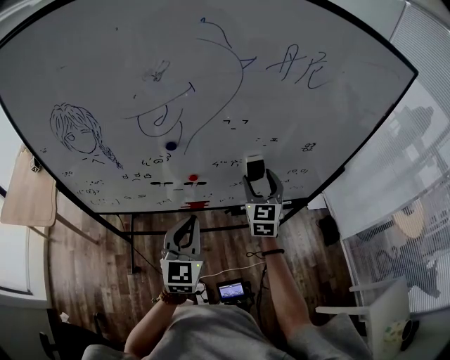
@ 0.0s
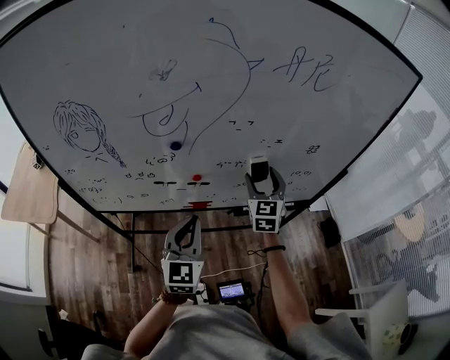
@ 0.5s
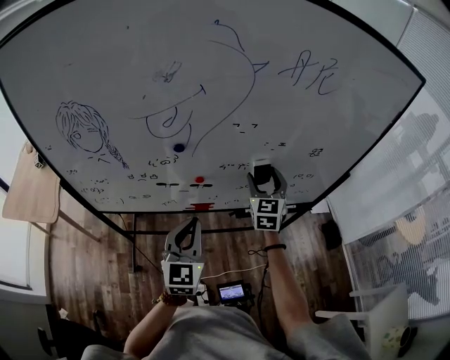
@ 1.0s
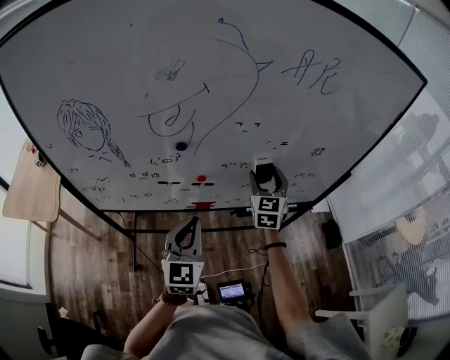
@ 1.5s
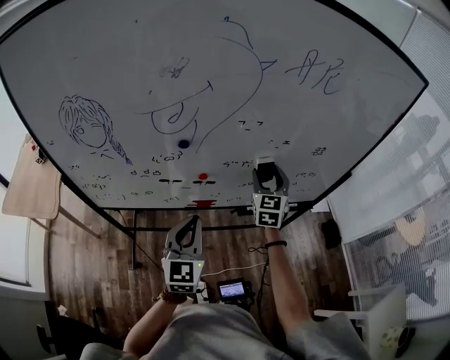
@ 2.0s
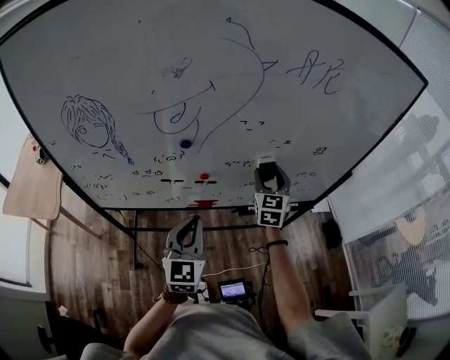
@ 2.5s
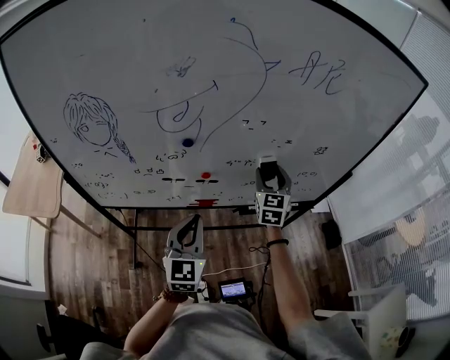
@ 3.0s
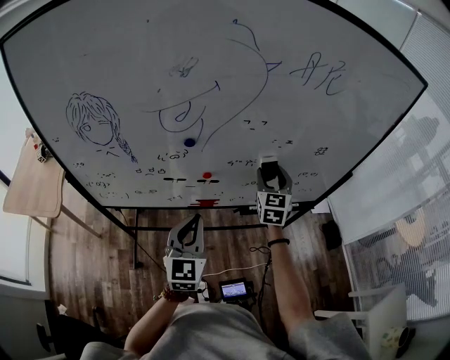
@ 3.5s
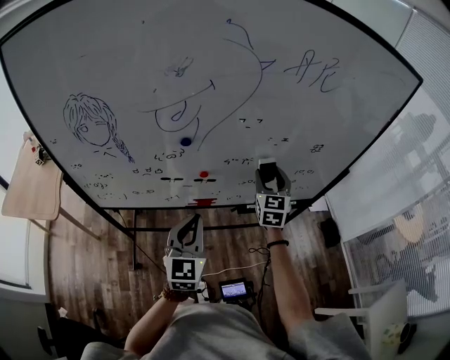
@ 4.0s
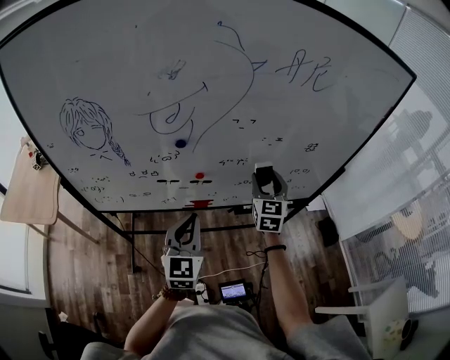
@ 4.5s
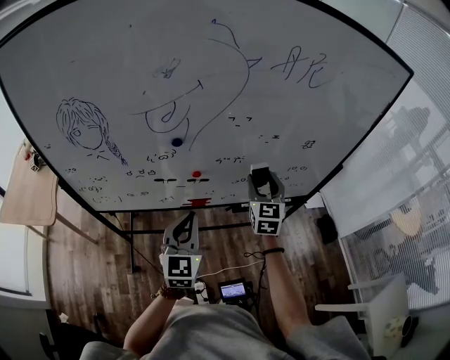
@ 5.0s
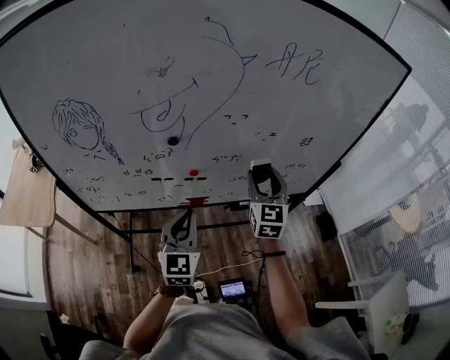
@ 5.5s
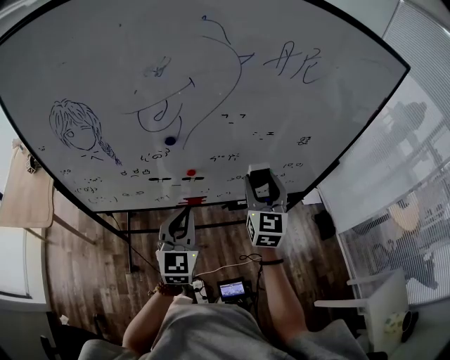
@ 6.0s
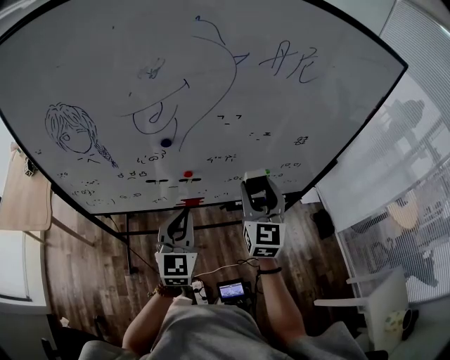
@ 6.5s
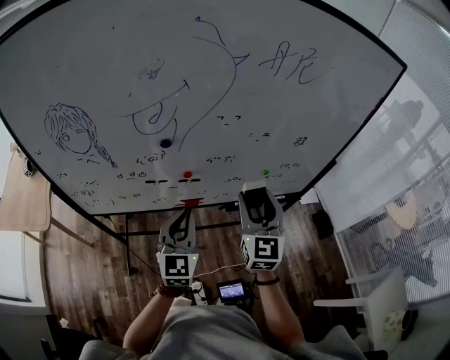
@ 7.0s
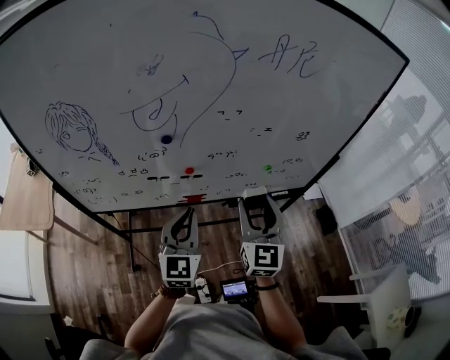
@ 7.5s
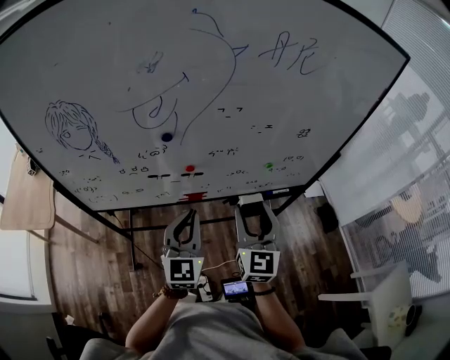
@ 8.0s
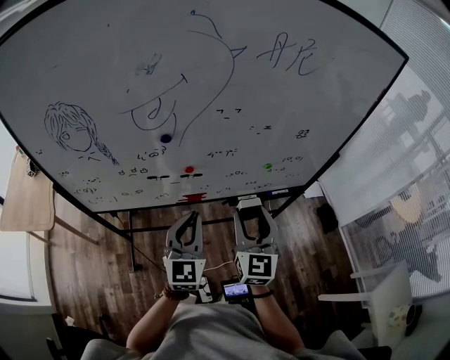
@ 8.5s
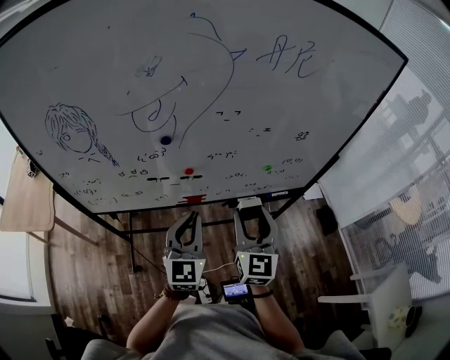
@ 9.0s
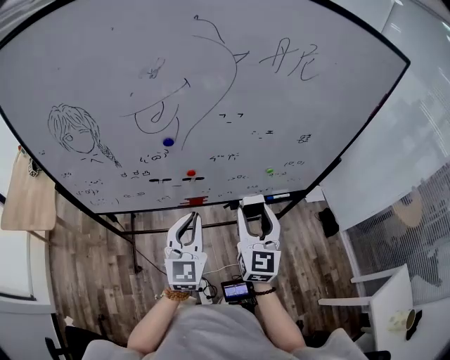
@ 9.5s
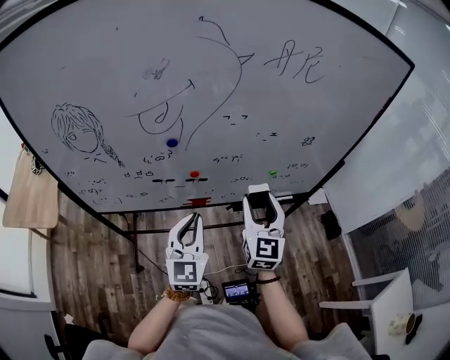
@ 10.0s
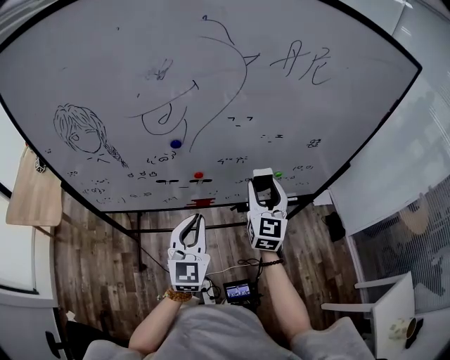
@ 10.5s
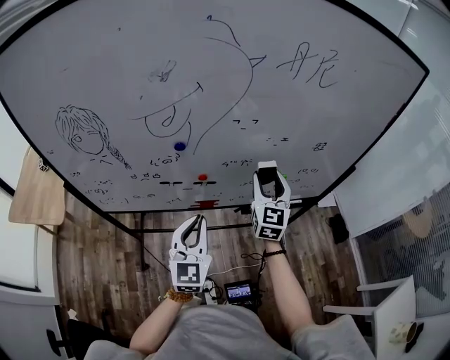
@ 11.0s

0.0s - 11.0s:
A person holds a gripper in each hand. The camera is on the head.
0.0s - 2.0s: There are only small adjustments of the grippers.
2.0s - 3.5s: Both grippers stay put.
3.5s - 5.5s: The right gripper heads backward and upward, covering approximately 10 cm.
5.5s - 7.5s: The right gripper is displaced backward by some 10 cm.
7.5s - 9.0s: The grippers move only a little.
9.0s - 11.0s: The right gripper heads forward, covering some 15 cm.

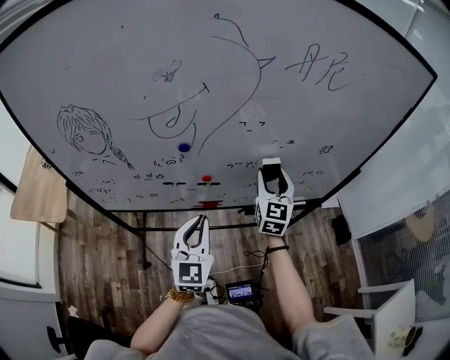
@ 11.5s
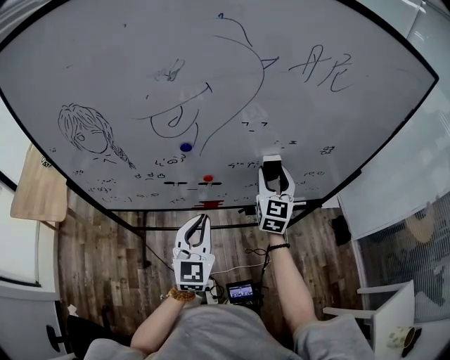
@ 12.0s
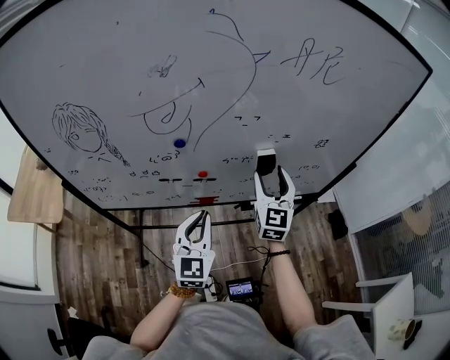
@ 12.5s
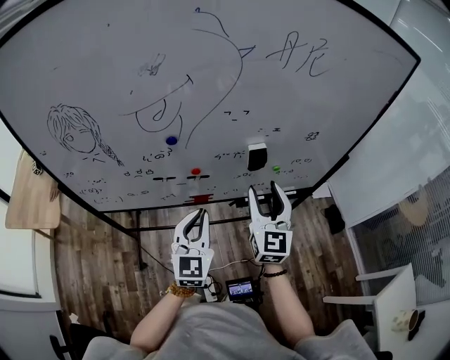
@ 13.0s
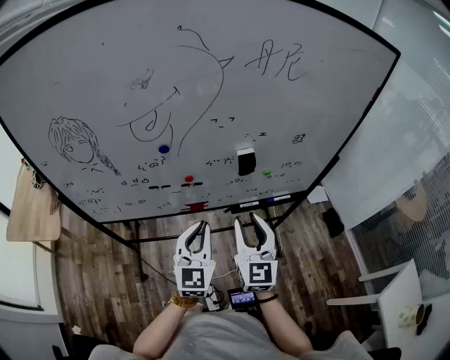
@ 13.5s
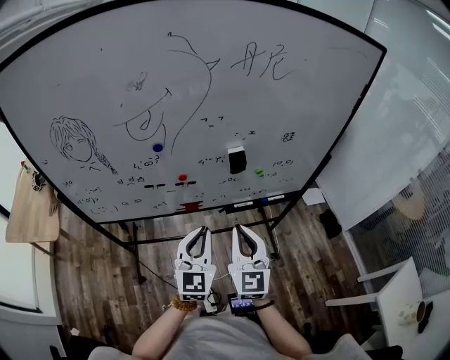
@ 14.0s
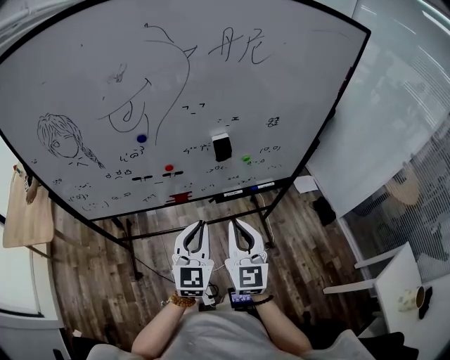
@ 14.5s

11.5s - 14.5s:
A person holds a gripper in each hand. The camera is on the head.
11.5s - 13.0s: The right gripper goes roughly 10 cm backward.
13.0s - 14.5s: The left gripper goes roughly 10 cm to the right and backward. Meanwhile the right gripper shifts roughly 15 cm backward, and closes up.

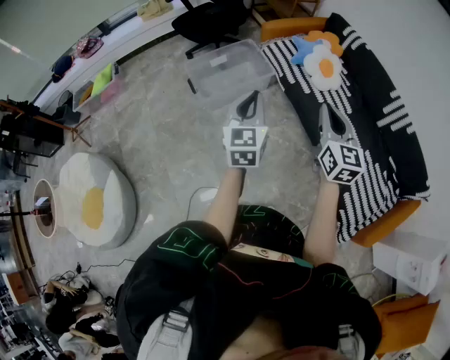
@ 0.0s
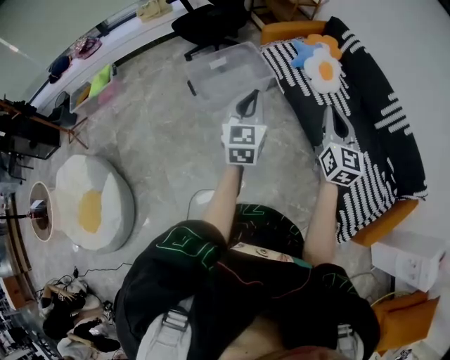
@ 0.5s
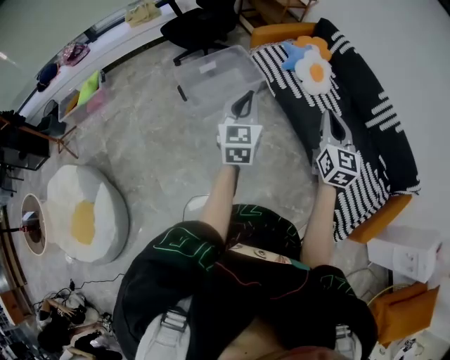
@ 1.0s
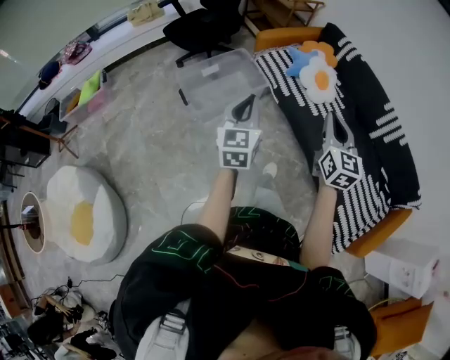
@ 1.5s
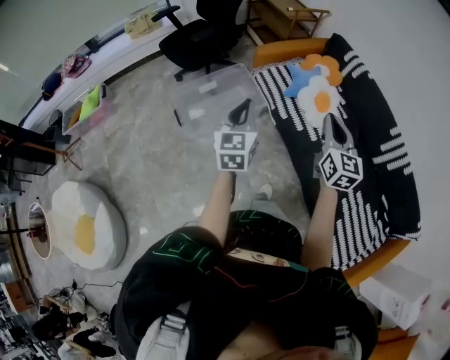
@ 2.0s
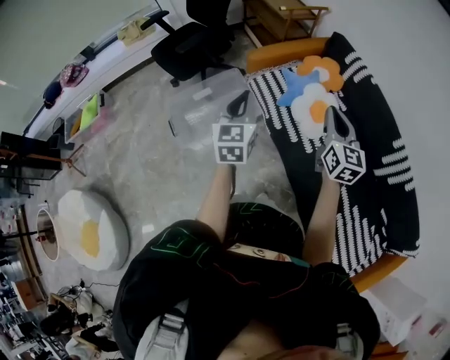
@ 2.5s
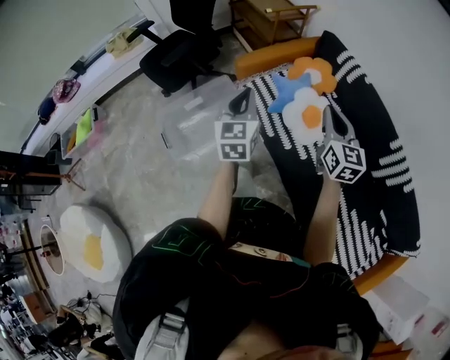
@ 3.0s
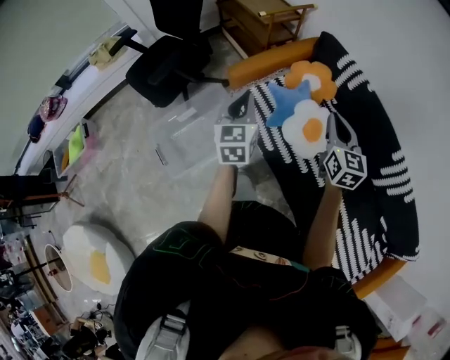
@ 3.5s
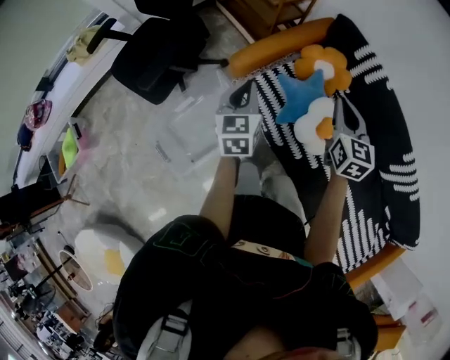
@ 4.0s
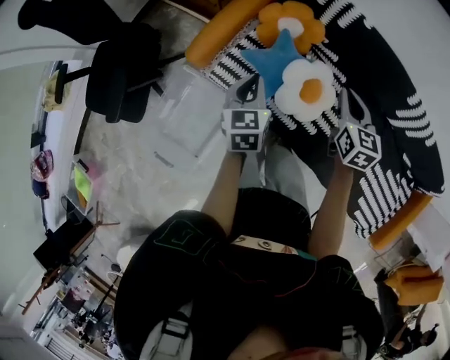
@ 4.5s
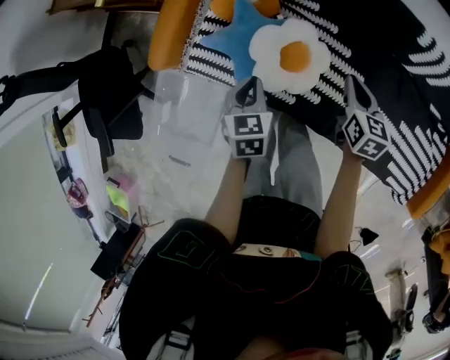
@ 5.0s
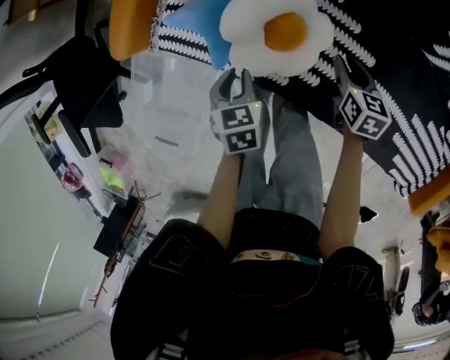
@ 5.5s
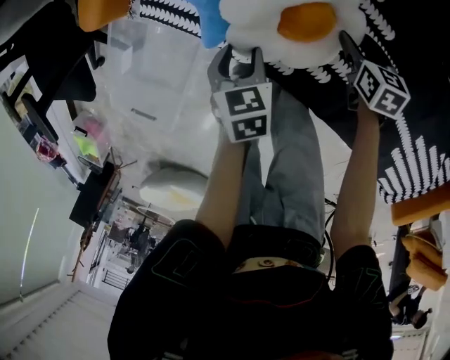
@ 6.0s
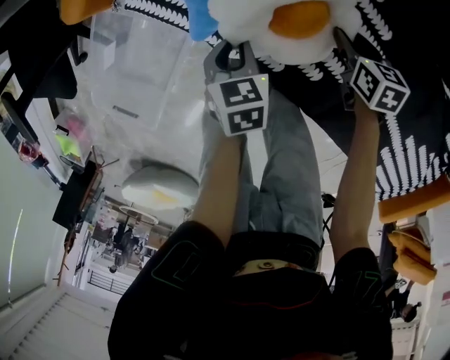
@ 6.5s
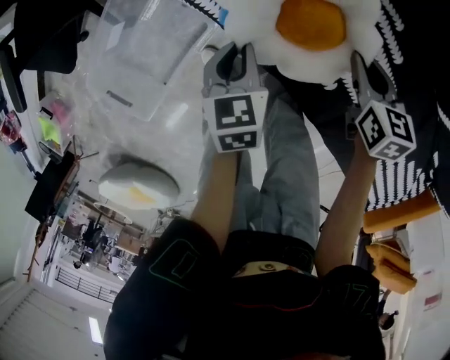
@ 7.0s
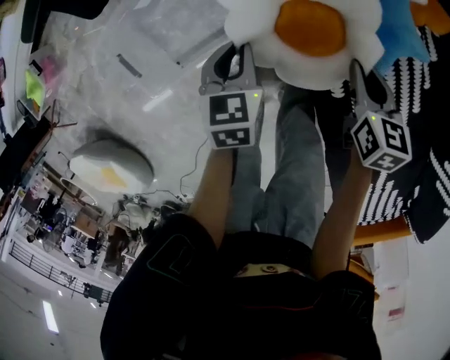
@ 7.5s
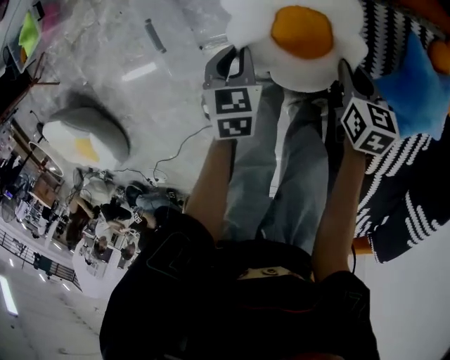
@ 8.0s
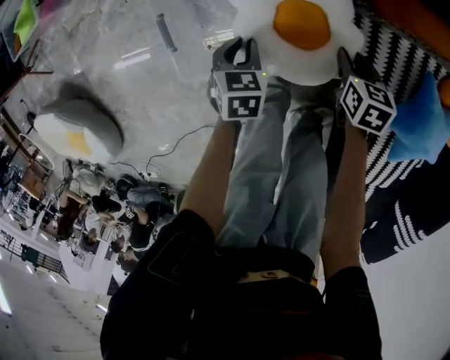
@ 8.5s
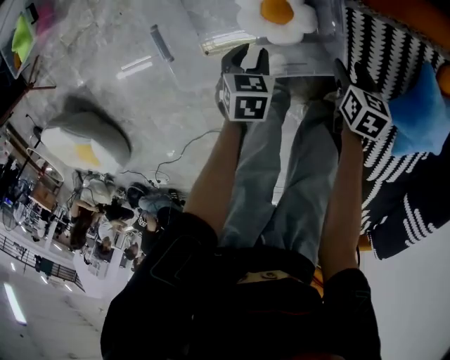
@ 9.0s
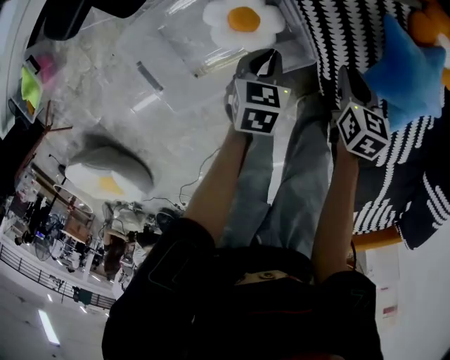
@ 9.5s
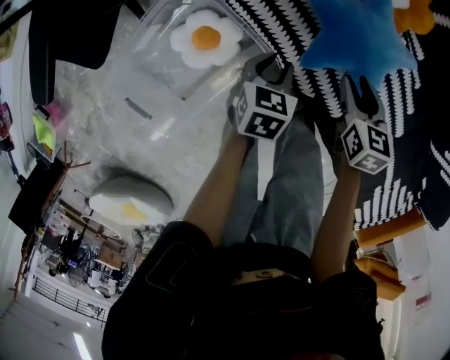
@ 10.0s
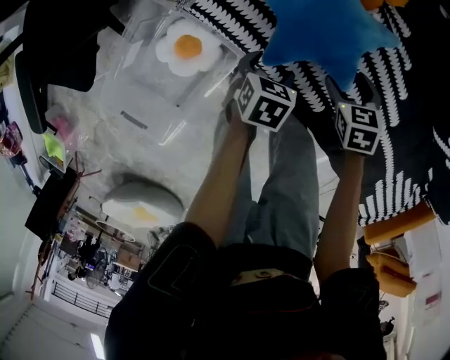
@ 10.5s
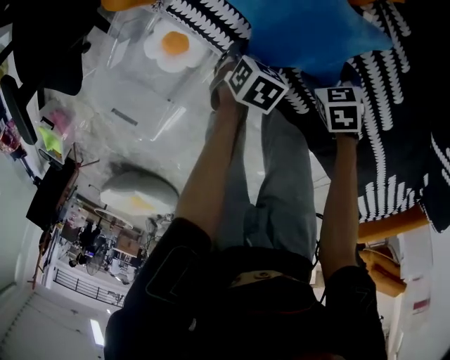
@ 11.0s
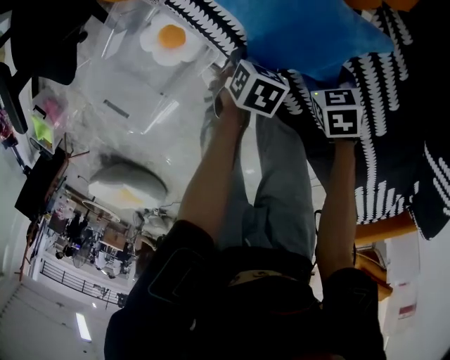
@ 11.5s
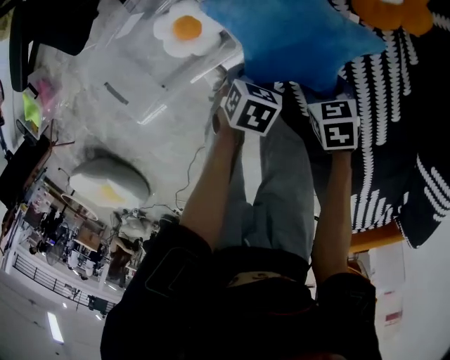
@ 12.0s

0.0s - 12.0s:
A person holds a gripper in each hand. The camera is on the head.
0.0s - 2.0s: The two grippers go approximately 25 cm forward.
2.0s - 4.0s: The two grippers travel together, forward, roughly 50 cm.
4.0s - 6.0s: Both grippers move downward, roughly 40 cm. The right gripper points its fingers approximately 30 degrees further downward, and opens; the left gripper tips its fingers downward by some 40 degrees, and opens its fingers.
6.0s - 8.0s: Both grippers are carried some 50 cm. The right gripper rotates roughly 50 degrees, and closes. The left gripper swivels approximately 40 degrees, and closes.
8.0s - 10.0s: The left gripper travels downward and back again, roughly 10 cm each way, and turns by some 40 degrees. The right gripper moves approximately 10 cm downward and comes back, and turns by approximately 30 degrees.
10.0s - 12.0s: The right gripper heads downward, covering some 10 cm, rotates some 40 degrees, and opens, then closes once more. Meanwhile the left gripper turns by about 20 degrees, and opens, then closes once more.

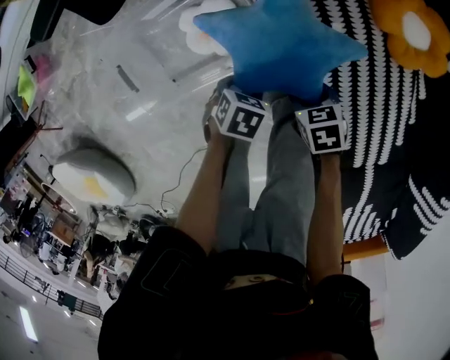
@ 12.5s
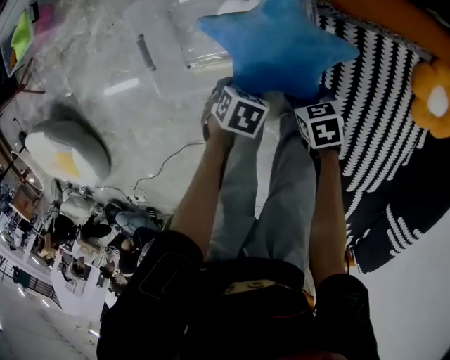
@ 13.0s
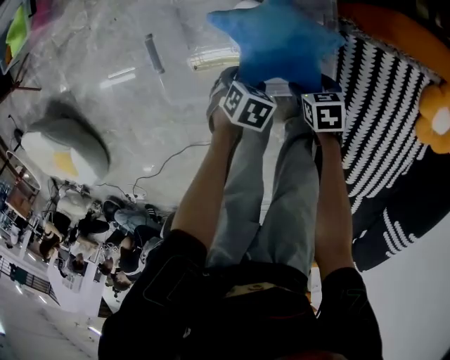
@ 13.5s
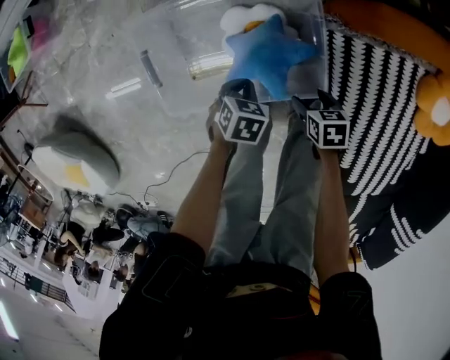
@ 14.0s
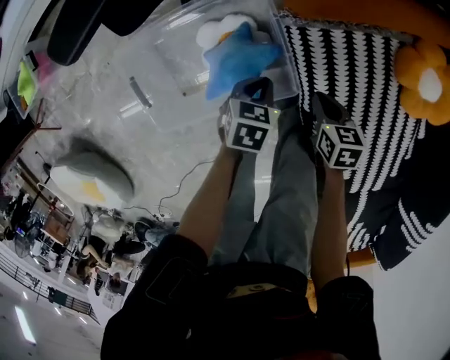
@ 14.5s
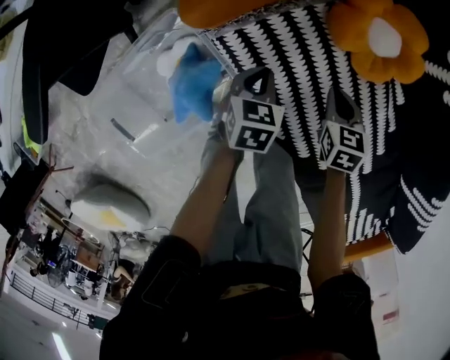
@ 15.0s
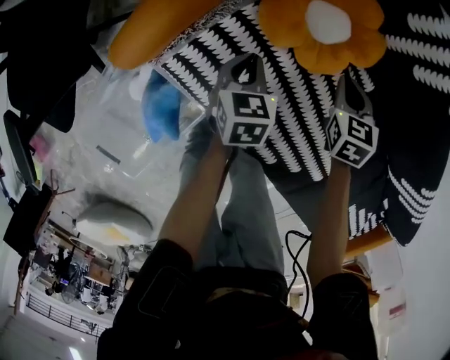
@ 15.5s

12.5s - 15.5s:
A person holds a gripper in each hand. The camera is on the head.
12.5s - 14.0s: The left gripper ends up some 20 cm from where it was, and closes, while the right gripper shifts by approximately 15 cm.
14.0s - 15.5s: Both grippers are carried approximately 50 cm. The left gripper turns by approximately 30 degrees; the right gripper rotates approximately 50 degrees, and closes up.
